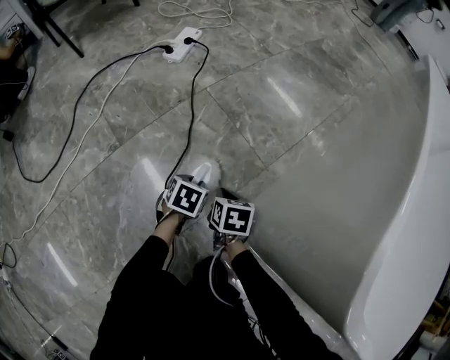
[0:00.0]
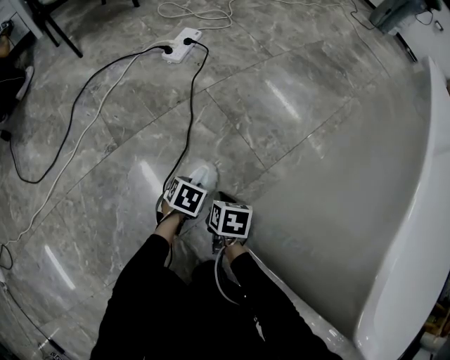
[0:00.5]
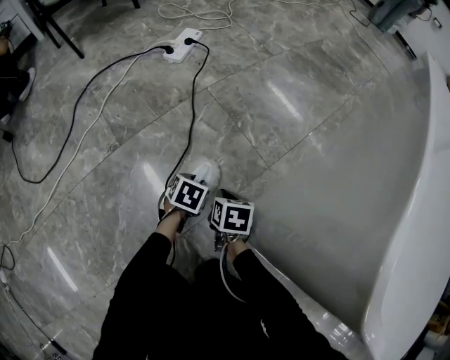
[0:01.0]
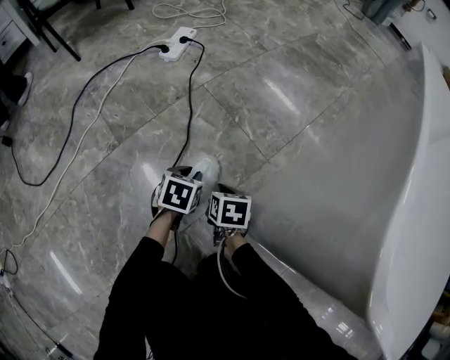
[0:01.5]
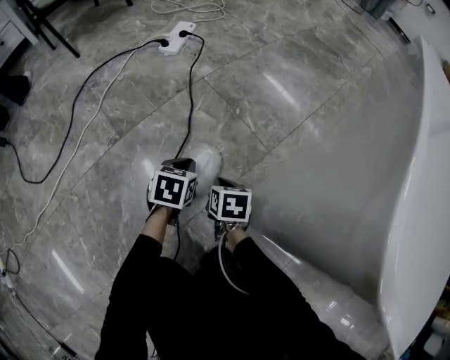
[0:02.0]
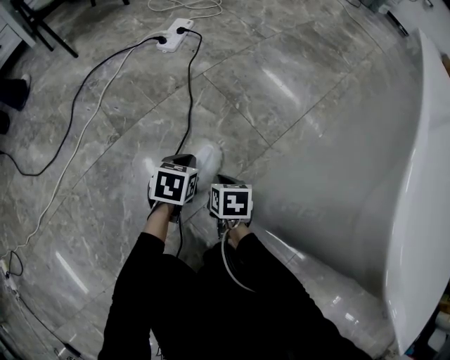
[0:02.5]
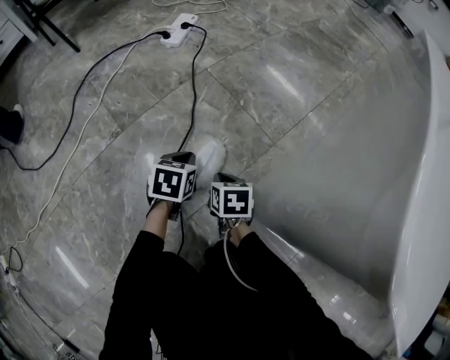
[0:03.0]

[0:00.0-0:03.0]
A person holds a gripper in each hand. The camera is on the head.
0:00.0 to 0:01.5: The grippers make only small movements.
0:01.5 to 0:03.0: The left gripper closes up.

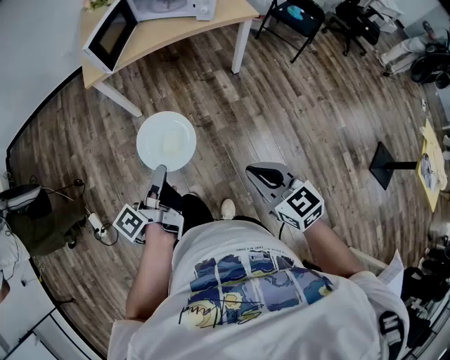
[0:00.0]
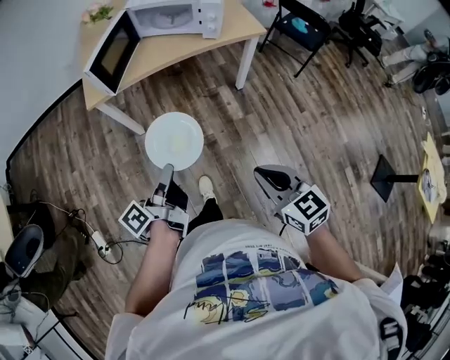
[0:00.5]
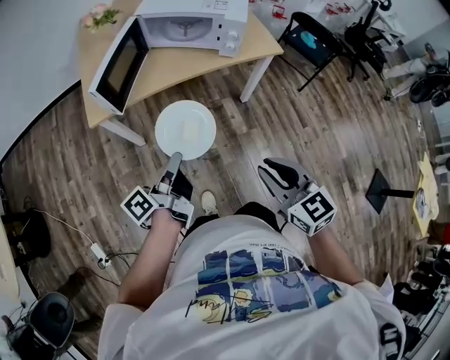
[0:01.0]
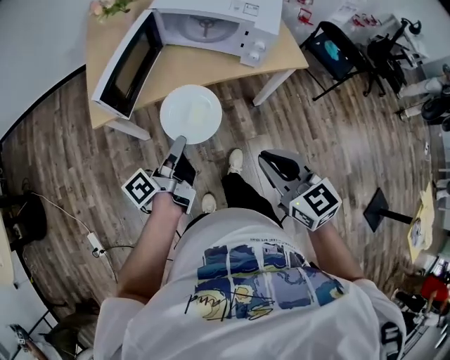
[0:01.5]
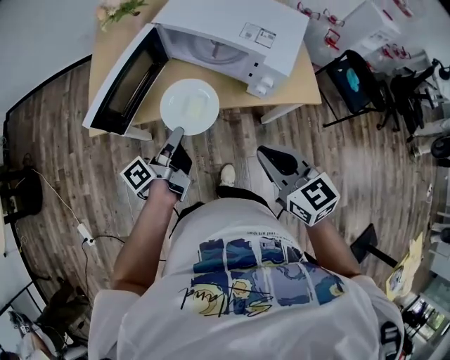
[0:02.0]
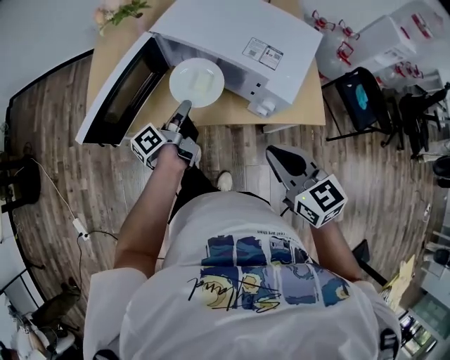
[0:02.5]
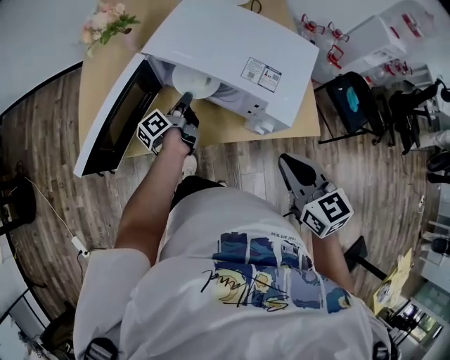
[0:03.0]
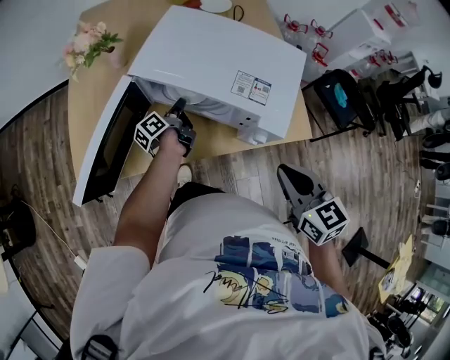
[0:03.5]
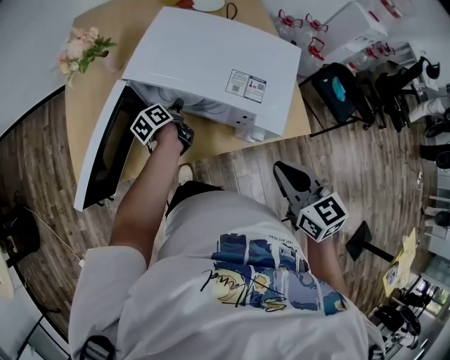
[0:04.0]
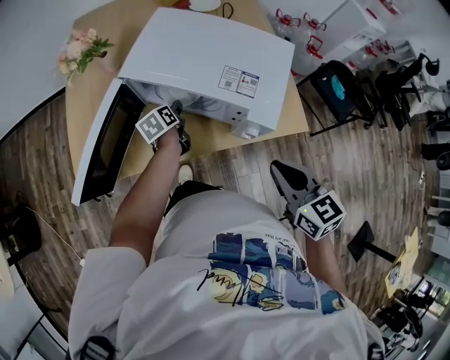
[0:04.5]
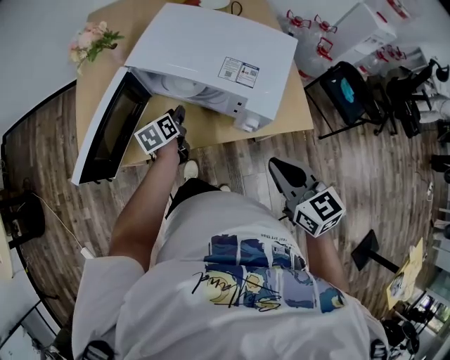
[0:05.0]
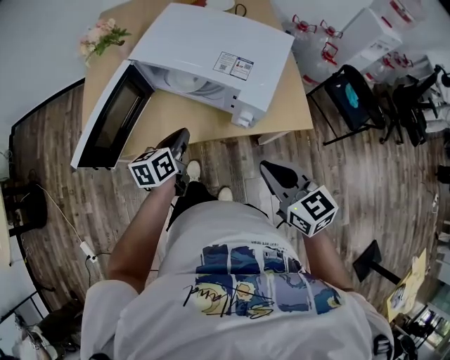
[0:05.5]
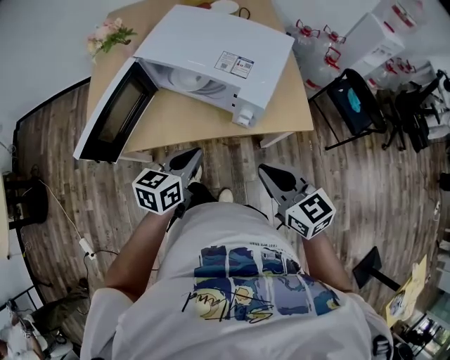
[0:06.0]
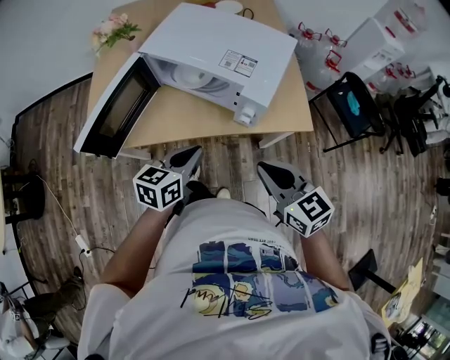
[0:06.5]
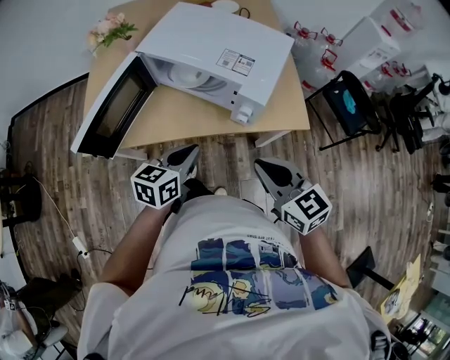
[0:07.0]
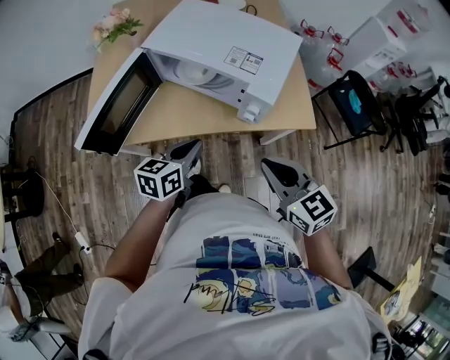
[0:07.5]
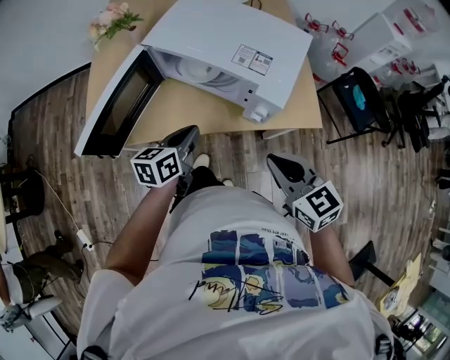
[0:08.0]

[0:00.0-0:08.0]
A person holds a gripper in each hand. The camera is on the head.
0:00.0 to 0:02.0: The two grippers travel together, forward, roughly 60 cm.
0:02.0 to 0:04.0: The right gripper shifts roughly 15 cm forward and to the right; the left gripper heads forward and downward, covering approximately 35 cm, and rotates some 30 degrees.
0:04.0 to 0:06.0: The right gripper heads backward, covering some 10 cm; the left gripper travels backward and upward by roughly 30 cm, rotates around the line of its fingers by about 50 degrees, clockwise from behind, and opens, then closes once more.
0:06.0 to 0:08.0: The left gripper shifts about 10 cm forward and to the left.

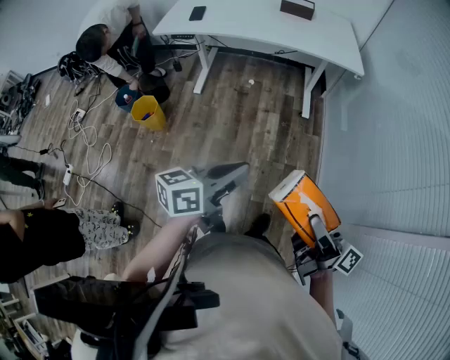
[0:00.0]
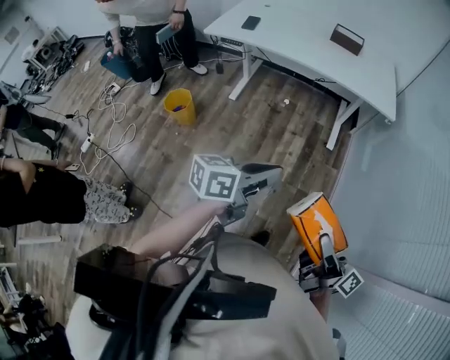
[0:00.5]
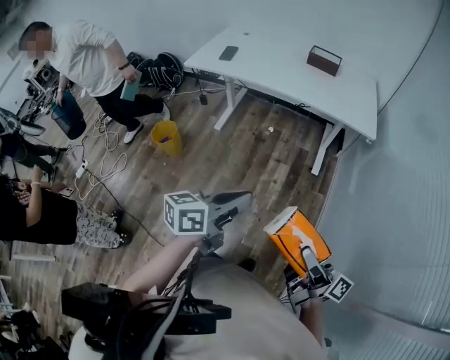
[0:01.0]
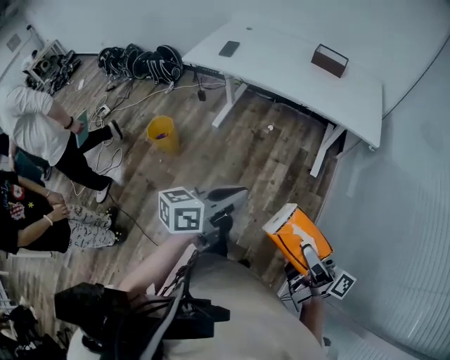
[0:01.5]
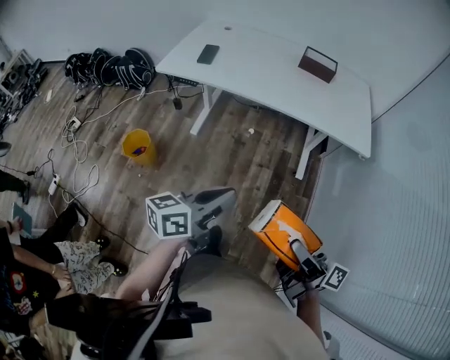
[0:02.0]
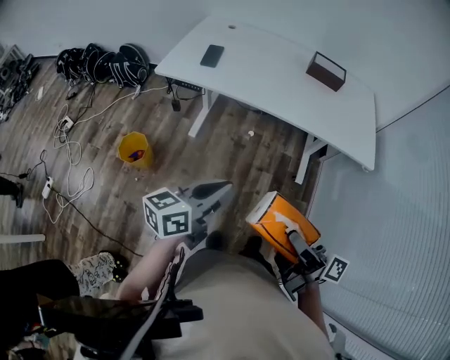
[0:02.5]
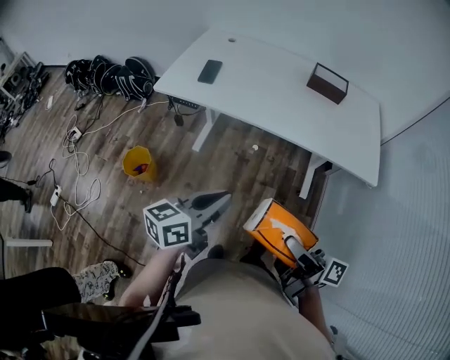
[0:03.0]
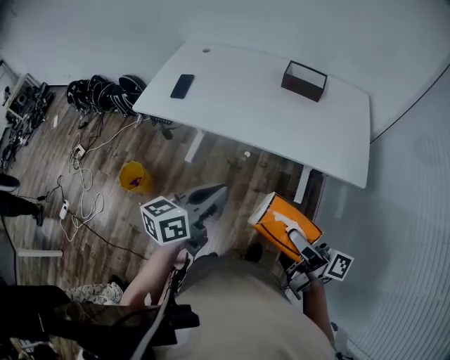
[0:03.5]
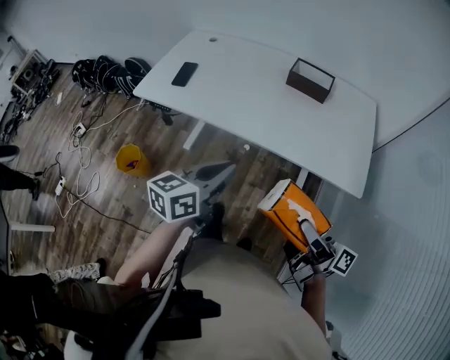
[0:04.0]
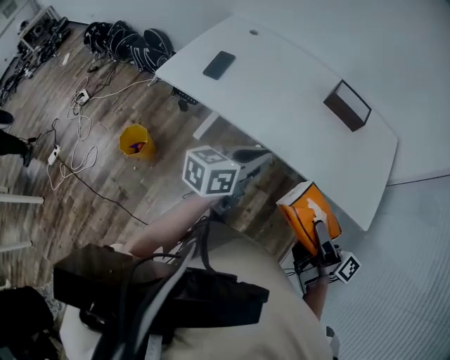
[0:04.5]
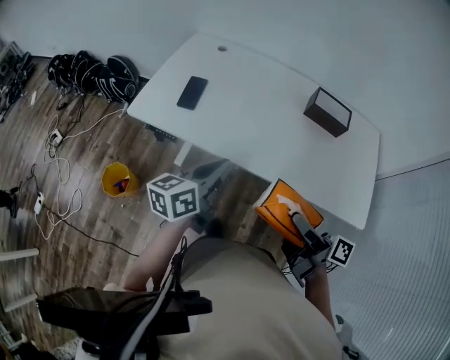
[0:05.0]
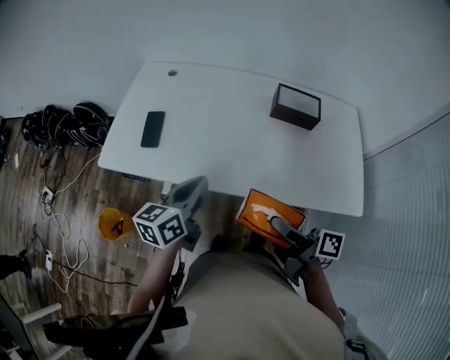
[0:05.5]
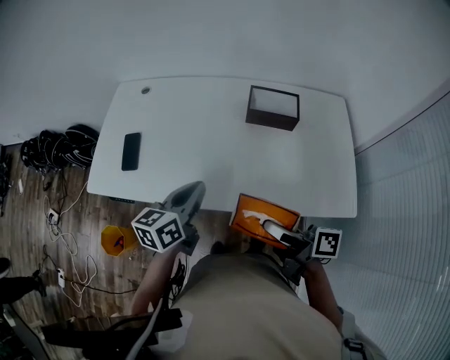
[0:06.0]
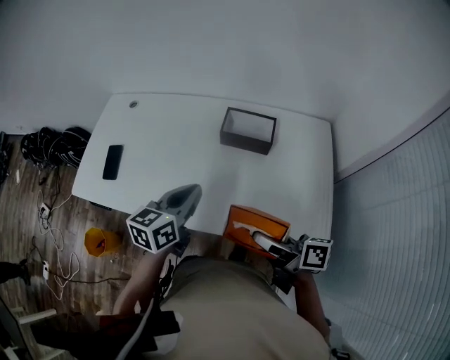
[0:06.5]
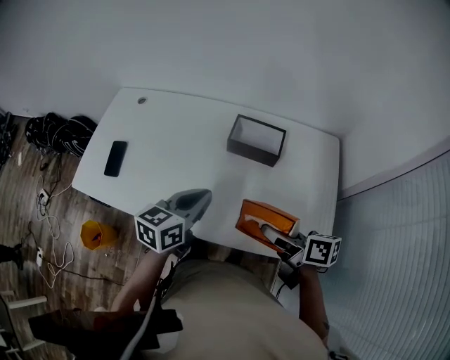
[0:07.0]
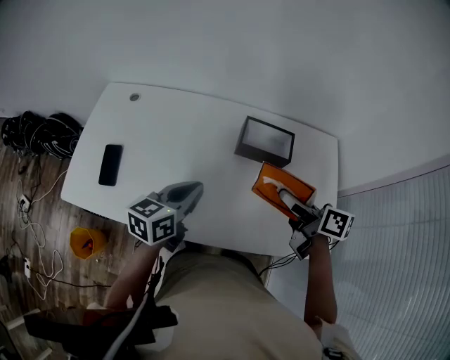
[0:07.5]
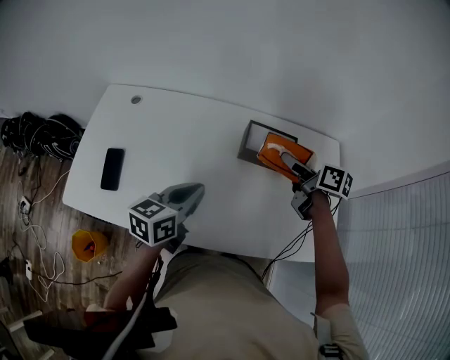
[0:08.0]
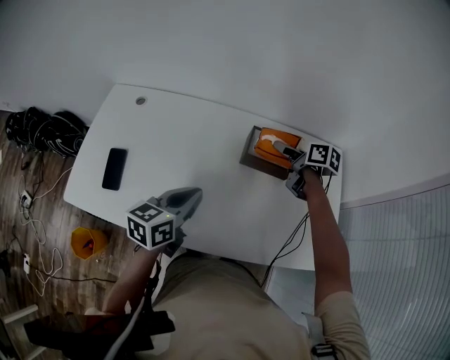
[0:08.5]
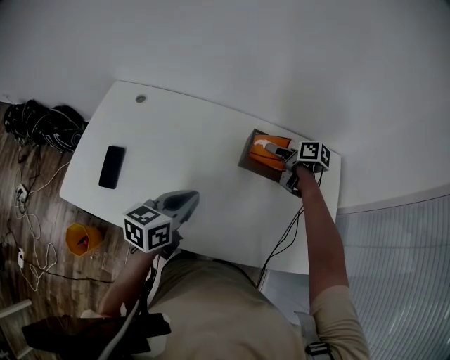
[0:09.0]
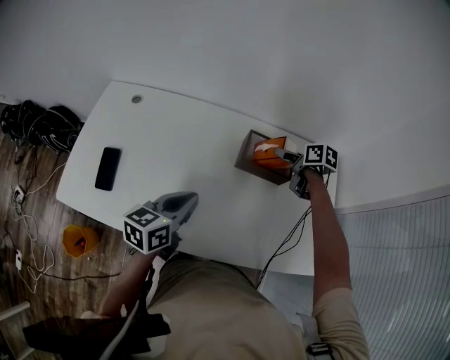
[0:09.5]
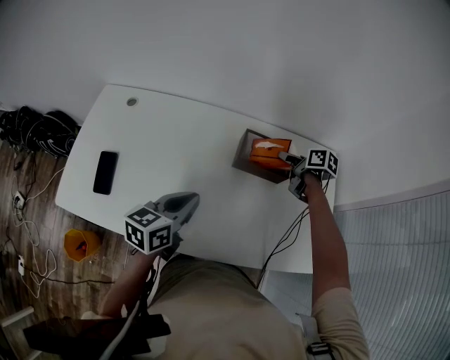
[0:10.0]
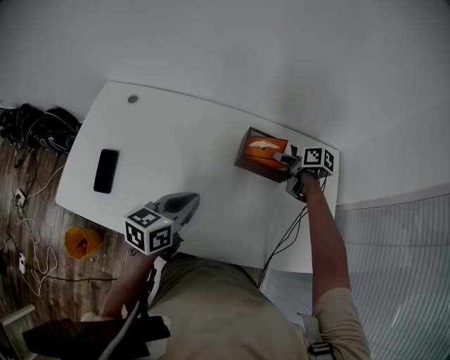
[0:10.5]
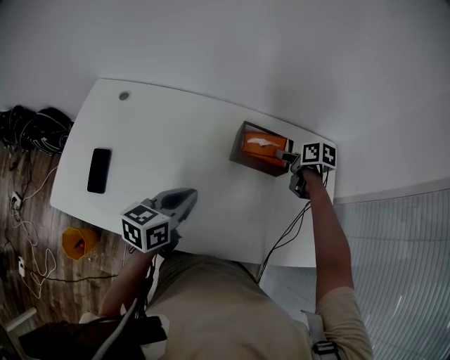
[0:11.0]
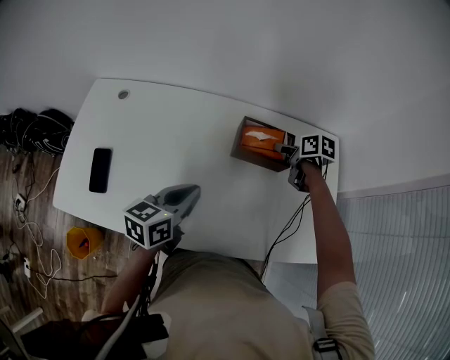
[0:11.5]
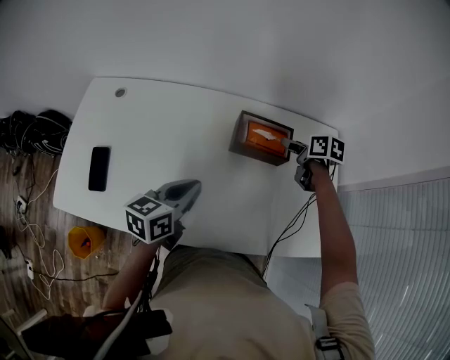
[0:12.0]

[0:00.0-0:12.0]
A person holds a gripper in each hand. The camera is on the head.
0:00.0 to 0:02.0: The grippers both shift forward by roughly 25 cm.
0:02.0 to 0:04.0: The two grippers go some 30 cm forward and to the right.
0:04.0 to 0:06.0: Both grippers move forward, some 30 cm.
0:06.0 to 0:08.0: The left gripper travels forward by about 15 cm, and travels to the right and back again, some 15 cm each way. Meanwhile the right gripper travels forward by some 35 cm, and changes its angle by approximately 30 degrees.
0:08.0 to 0:10.0: The right gripper moves downward and forward, some 15 cm.
0:10.0 to 0:12.0: The grippers make only small movements.

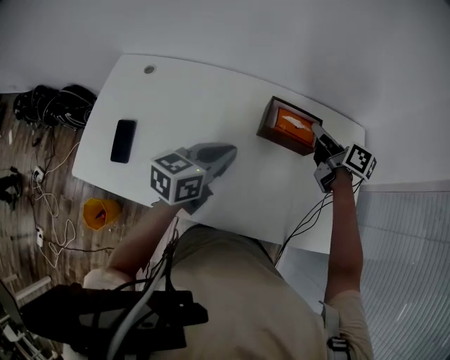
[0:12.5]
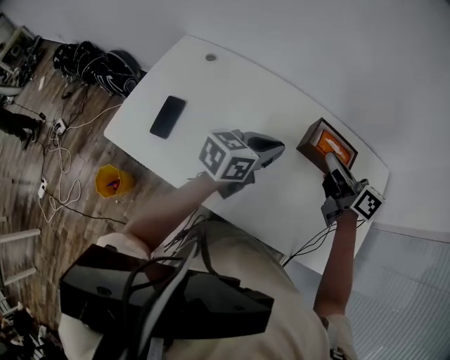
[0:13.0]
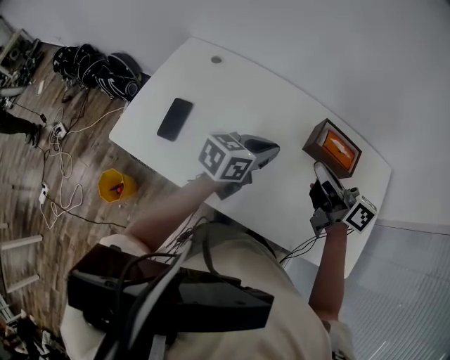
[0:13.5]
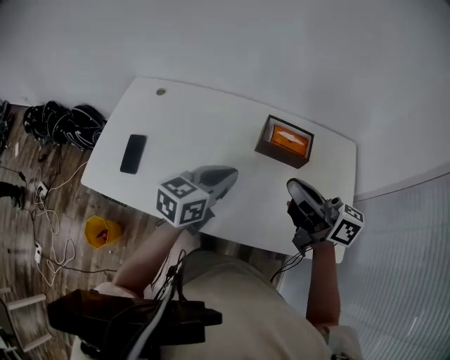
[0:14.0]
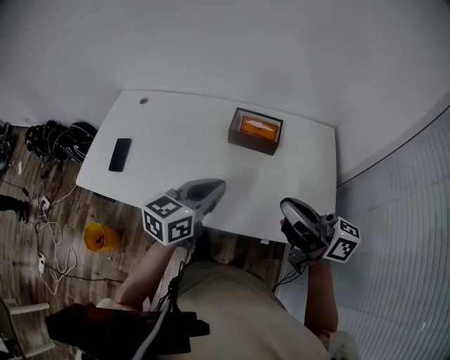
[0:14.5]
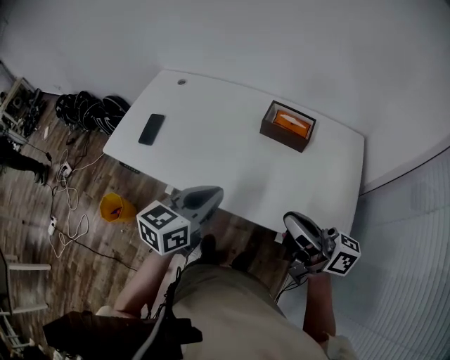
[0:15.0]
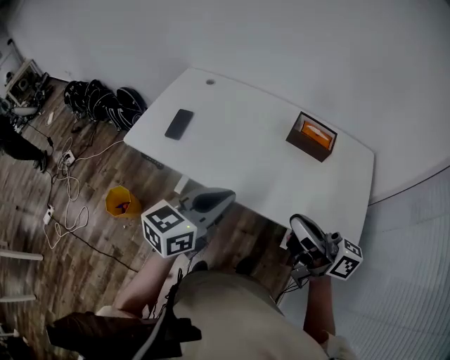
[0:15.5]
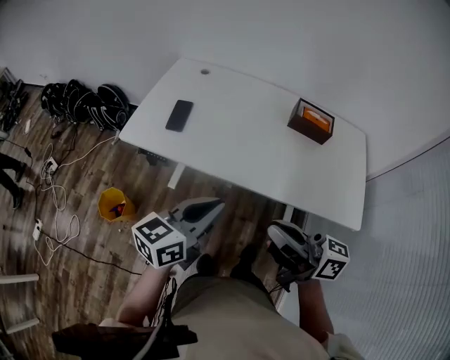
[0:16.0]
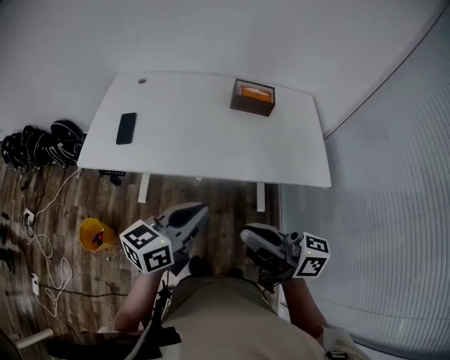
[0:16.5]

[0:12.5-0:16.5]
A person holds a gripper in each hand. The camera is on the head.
0:12.5 to 0:14.5: The left gripper travels backward and to the right by approximately 20 cm. The right gripper heads backward, covering approximately 35 cm, and tips its fingers upward by some 30 degrees.
0:14.5 to 0:16.5: The right gripper is displaced to the left and backward by some 35 cm; the left gripper goes some 35 cm backward and to the left.
